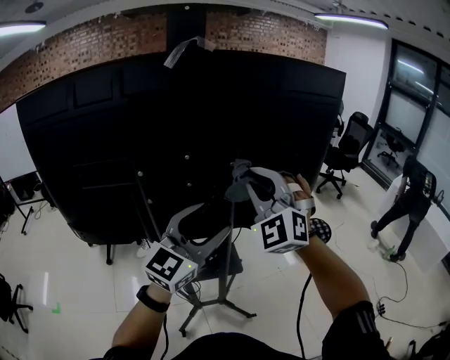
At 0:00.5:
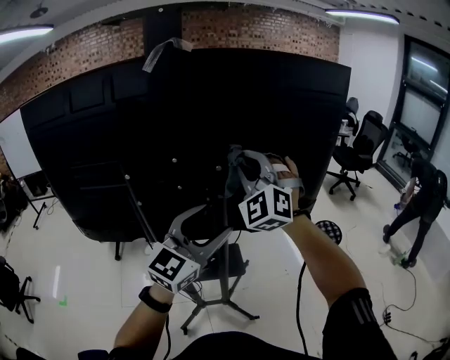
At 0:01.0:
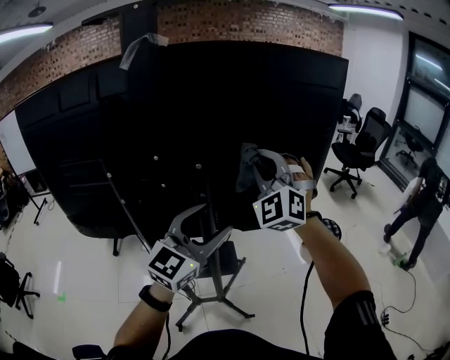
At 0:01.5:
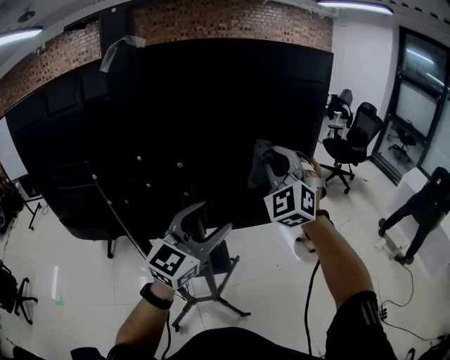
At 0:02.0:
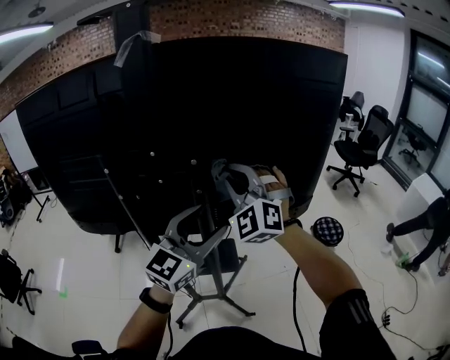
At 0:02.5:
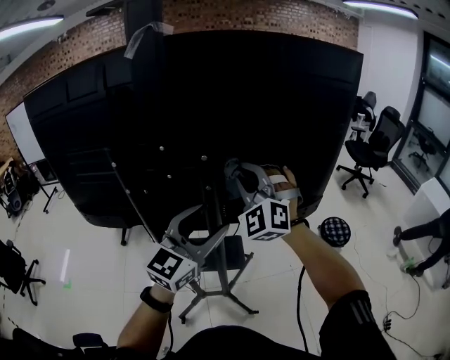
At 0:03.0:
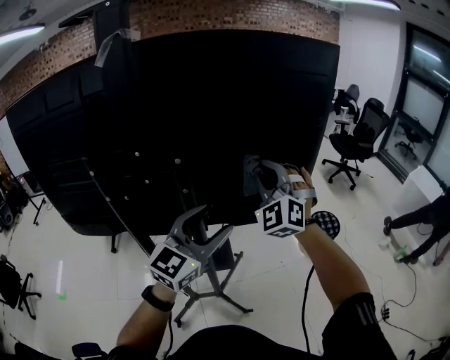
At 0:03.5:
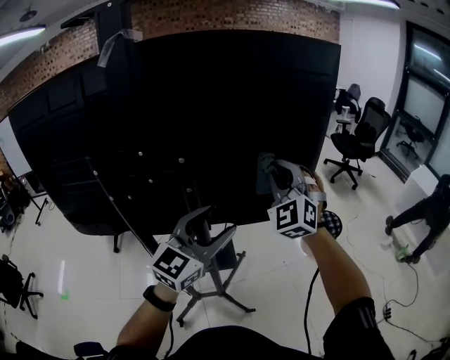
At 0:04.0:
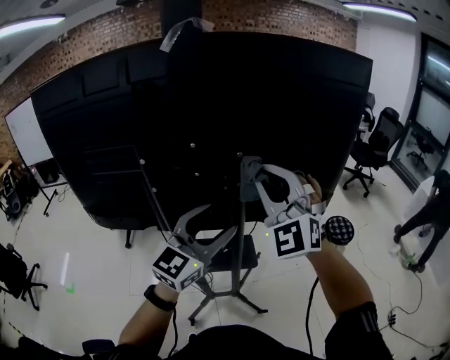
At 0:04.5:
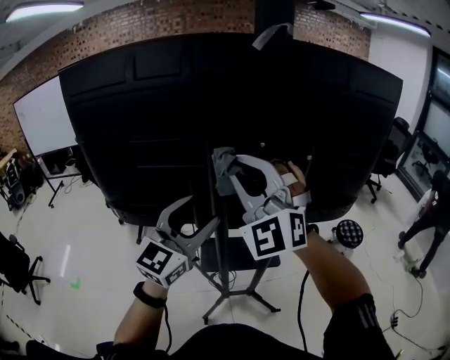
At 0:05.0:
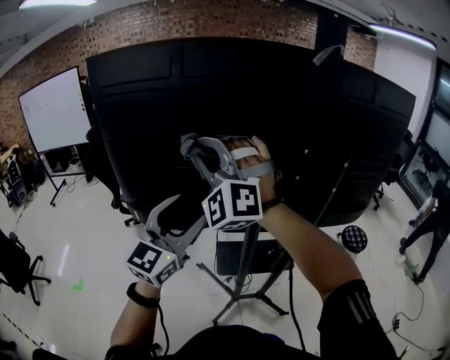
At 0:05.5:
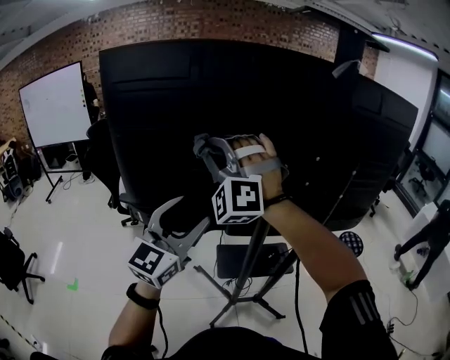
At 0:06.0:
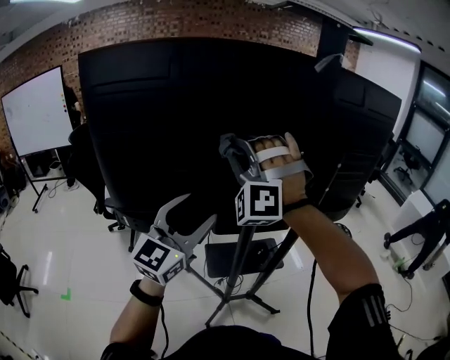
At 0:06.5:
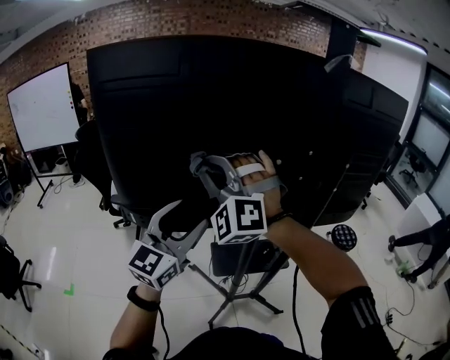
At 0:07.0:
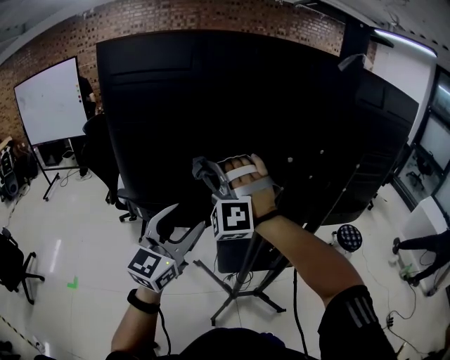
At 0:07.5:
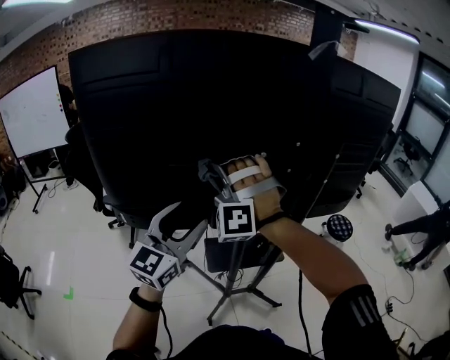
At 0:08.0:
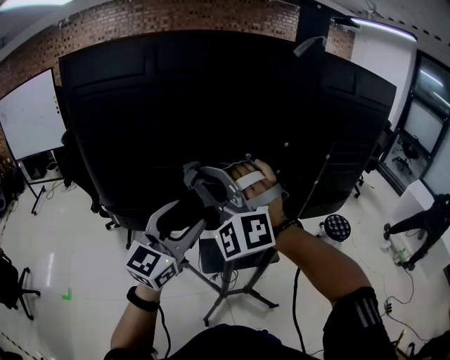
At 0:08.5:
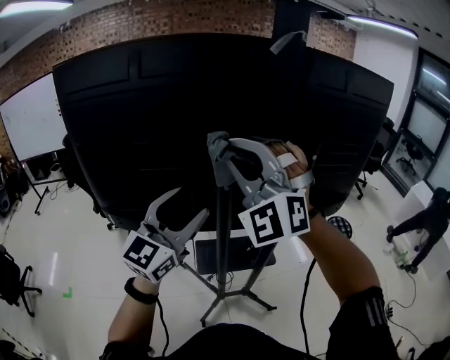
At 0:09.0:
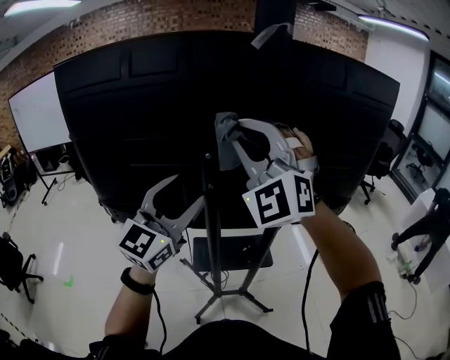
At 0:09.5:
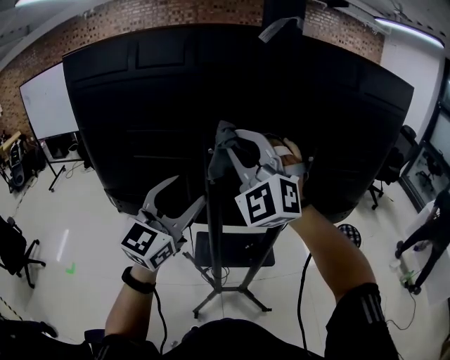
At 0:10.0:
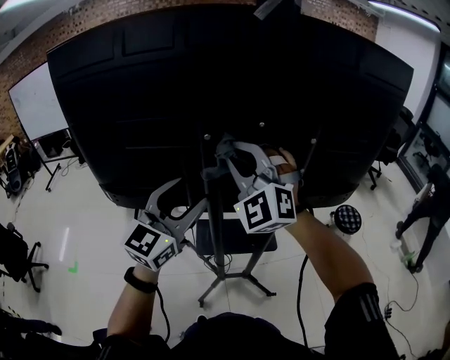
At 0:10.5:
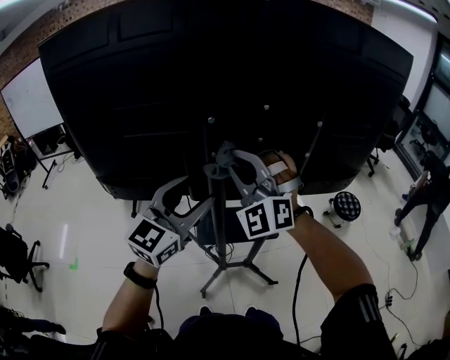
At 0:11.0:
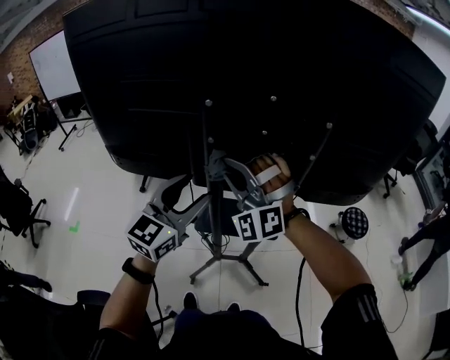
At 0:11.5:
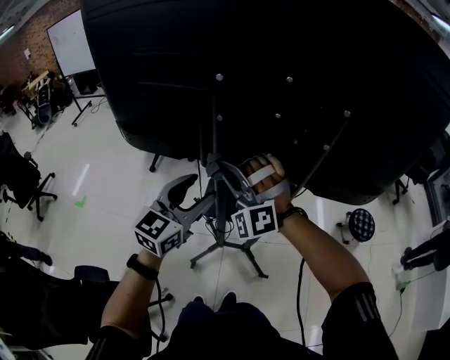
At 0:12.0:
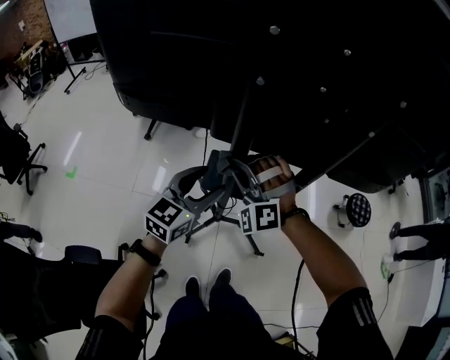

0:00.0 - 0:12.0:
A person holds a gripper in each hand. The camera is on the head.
0:00.0 - 0:02.0: The left gripper moves to the right, some 10 cm. The right gripper travels forward by about 5 cm, and goes to the right and returns, some 15 cm each way.
0:02.0 - 0:04.0: The right gripper is displaced backward by approximately 5 cm, and reaches approximately 15 cm to the right, then returns. The left gripper shifts roughly 5 cm to the left.
0:04.0 - 0:06.0: Both grippers travel together to the left, roughly 35 cm. The right gripper rolls counterclockwise, seen from behind, by roughly 40 degrees.
0:06.0 - 0:08.0: The left gripper goes to the left and returns, approximately 5 cm each way. Meanwhile the right gripper goes roughly 5 cm backward, goes to the left and returns, some 10 cm each way, and turns by about 20 degrees.
0:08.0 - 0:10.0: The right gripper is displaced to the right by about 15 cm. Meanwhile the left gripper travels to the right by about 10 cm.
0:10.0 - 0:12.0: The grippers both shift downward by approximately 30 cm. The right gripper swivels approximately 30 degrees, while the left gripper changes its angle by approximately 20 degrees.

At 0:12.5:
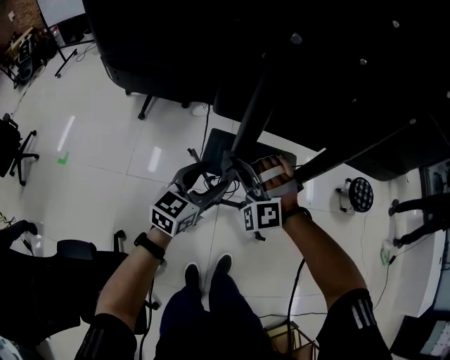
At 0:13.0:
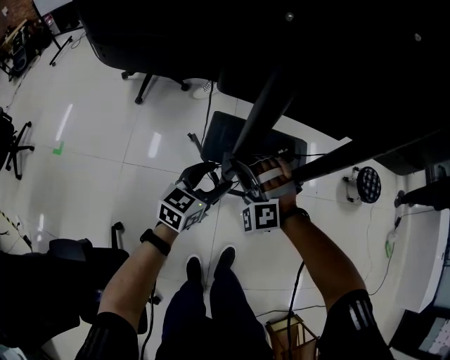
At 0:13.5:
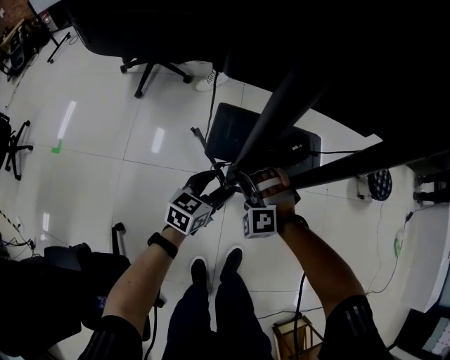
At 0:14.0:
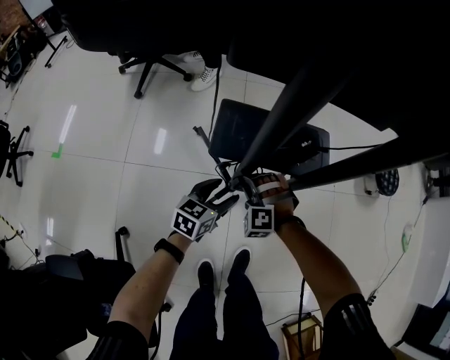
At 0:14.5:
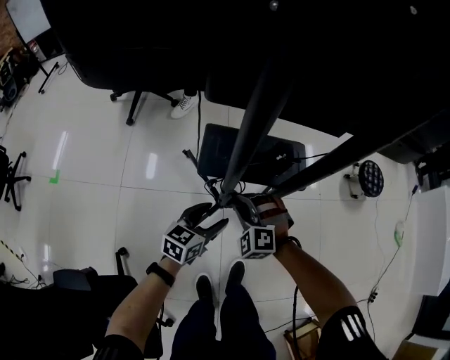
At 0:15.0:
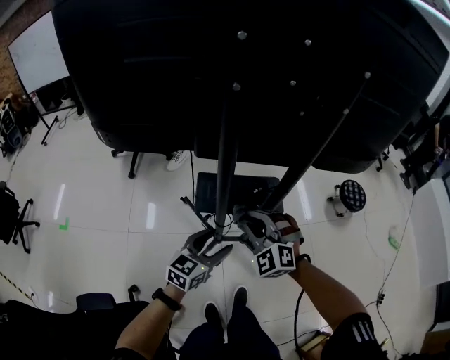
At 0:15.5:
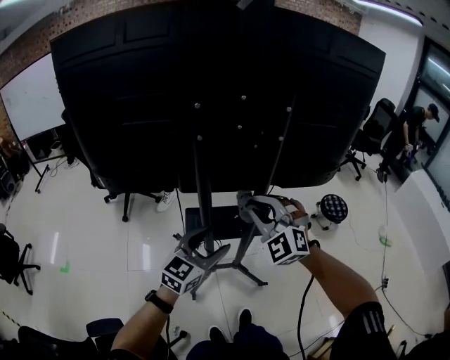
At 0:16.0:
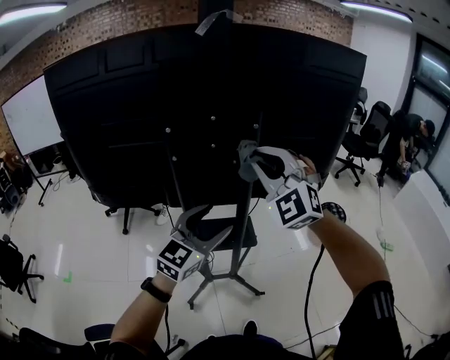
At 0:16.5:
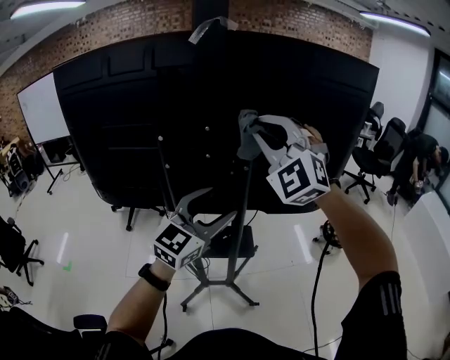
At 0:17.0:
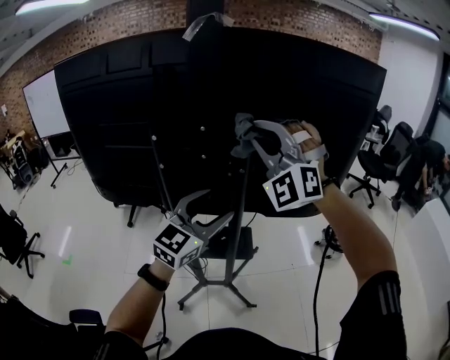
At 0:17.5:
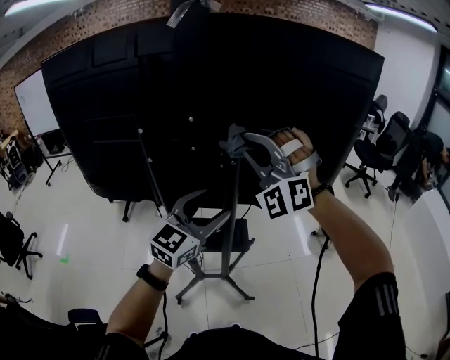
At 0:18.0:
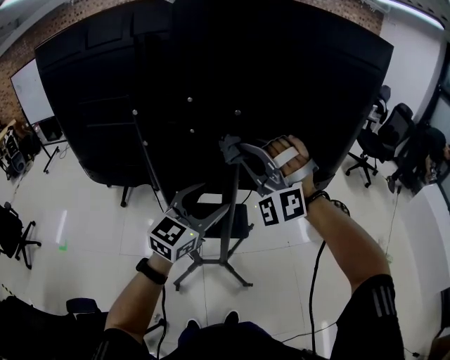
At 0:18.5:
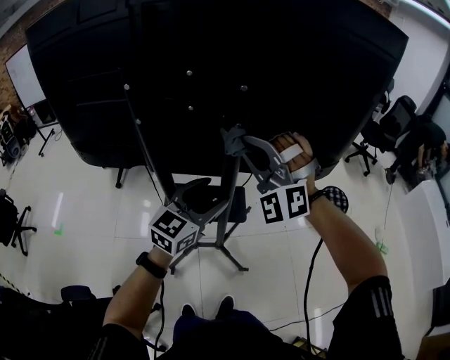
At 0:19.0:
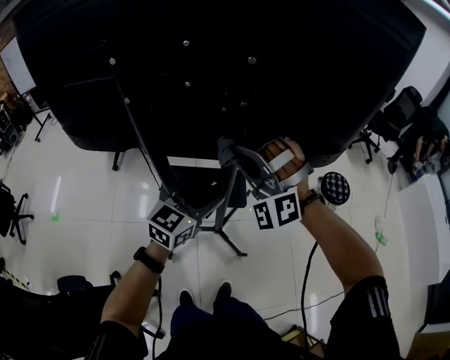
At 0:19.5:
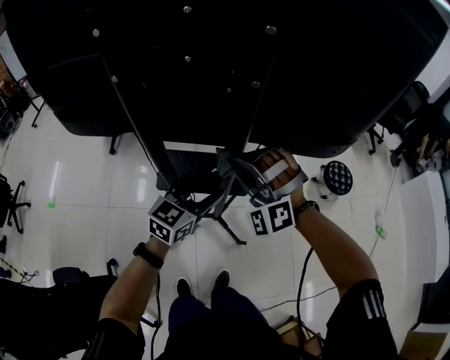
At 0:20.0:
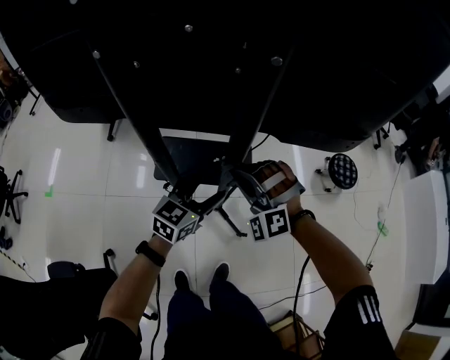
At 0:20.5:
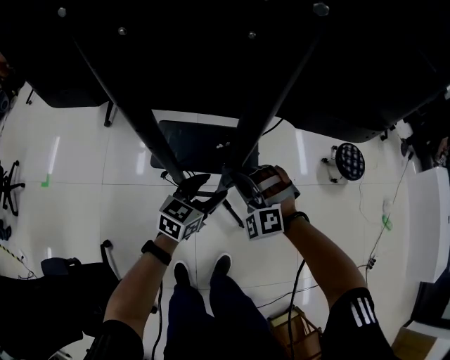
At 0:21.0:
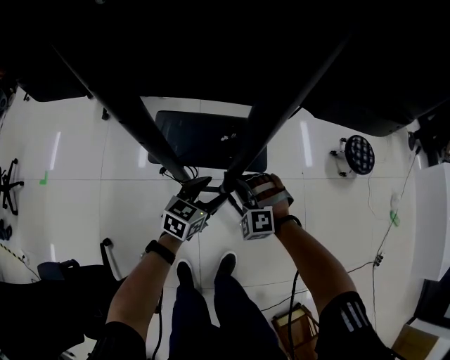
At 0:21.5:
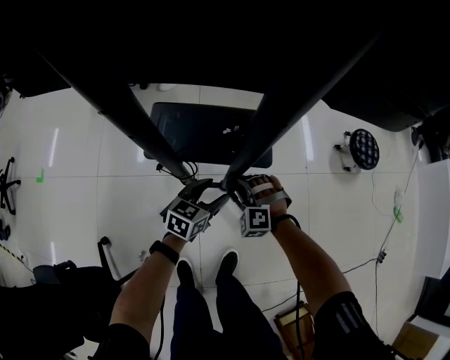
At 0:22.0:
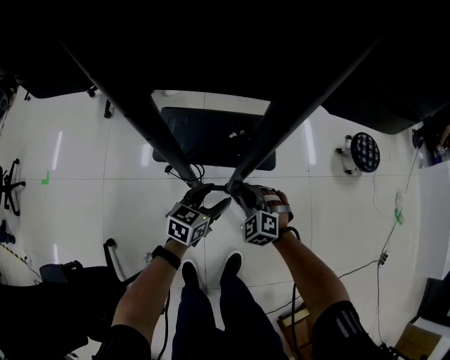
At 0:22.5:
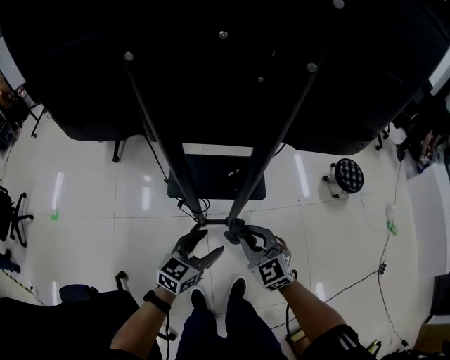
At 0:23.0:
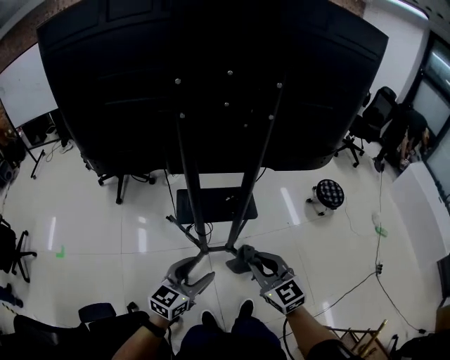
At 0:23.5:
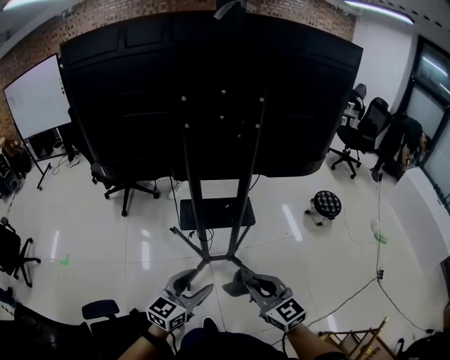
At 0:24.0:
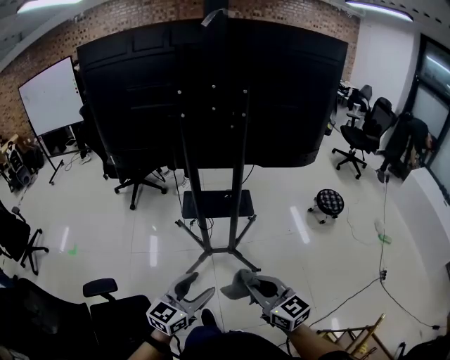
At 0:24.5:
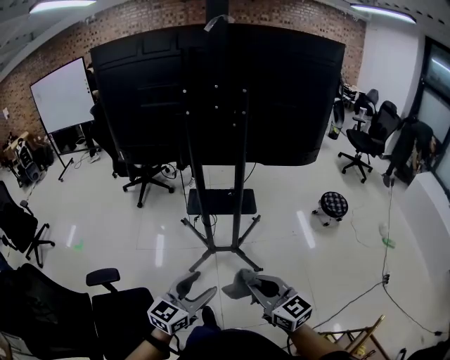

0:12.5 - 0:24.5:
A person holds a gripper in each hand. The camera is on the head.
0:12.5 - 0:14.5: Both grippers travel together downward, approximately 20 cm. The right gripper turns by about 30 degrees.
0:14.5 - 0:16.5: Both grippers travel together upward, about 70 cm. The left gripper turns by approximately 50 degrees. Meanwhile the right gripper tips its fingers upward by about 40 degrees.
0:16.5 - 0:18.5: Both grippers travel together downward, about 15 cm.
0:18.5 - 0:20.5: The two grippers go about 40 cm downward. The left gripper changes its angle by roughly 20 degrees, while the right gripper turns by roughly 30 degrees.
0:20.5 - 0:22.5: Both grippers move backward, some 10 cm. The left gripper reaches roughly 15 cm downward, then returns; the right gripper moves roughly 25 cm downward and comes back, and rotates around the line of its fingers by about 50 degrees, clockwise from behind.
0:22.5 - 0:24.5: Both grippers travel together backward and upward, about 40 cm. The right gripper swivels about 30 degrees.

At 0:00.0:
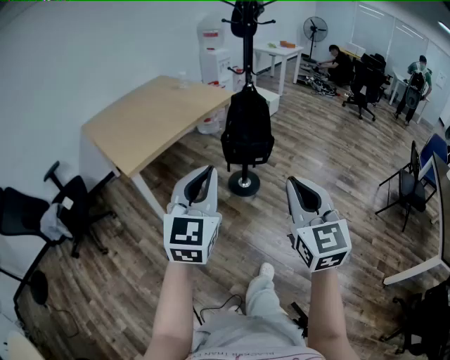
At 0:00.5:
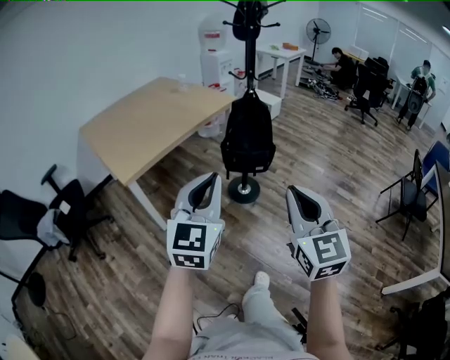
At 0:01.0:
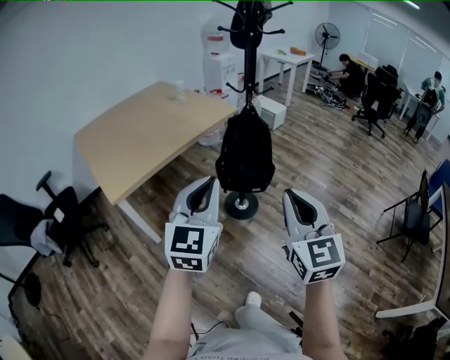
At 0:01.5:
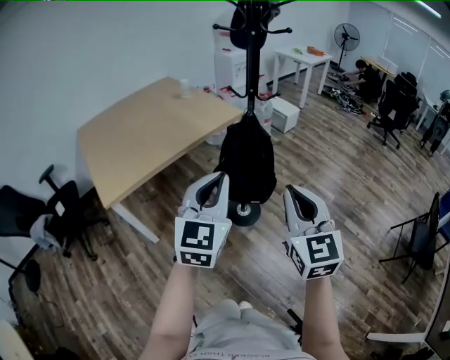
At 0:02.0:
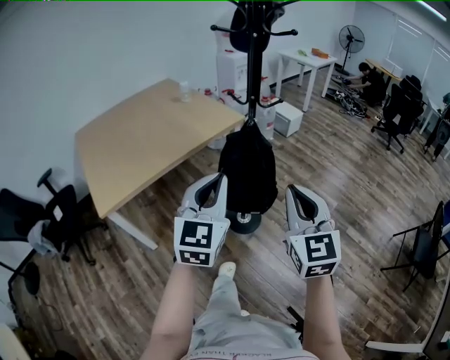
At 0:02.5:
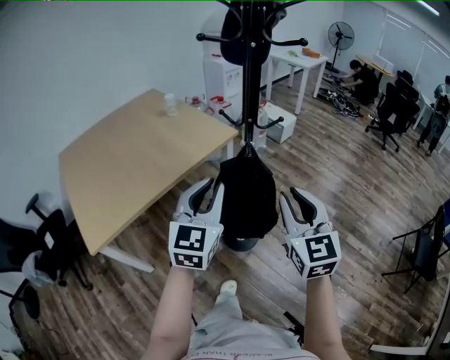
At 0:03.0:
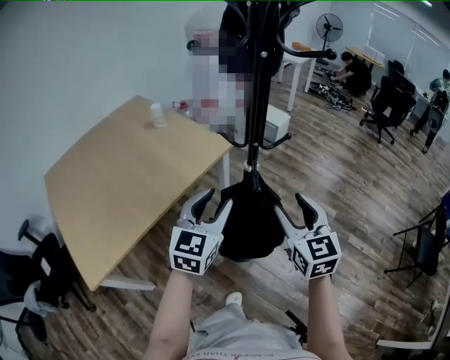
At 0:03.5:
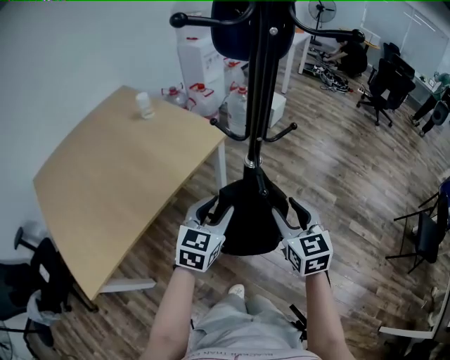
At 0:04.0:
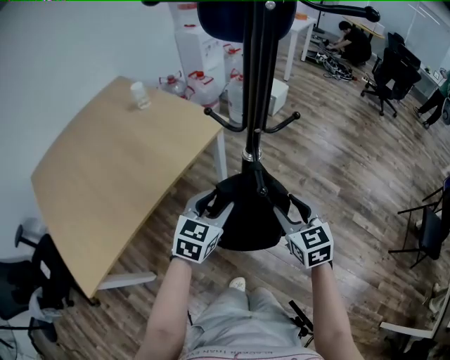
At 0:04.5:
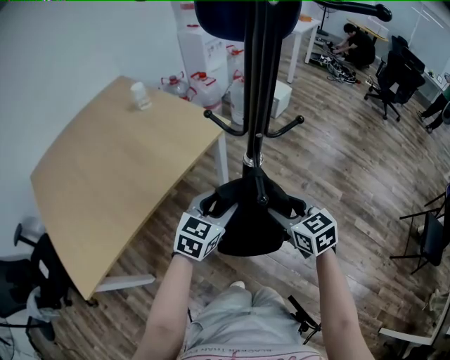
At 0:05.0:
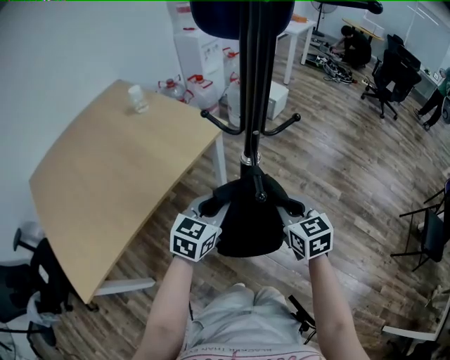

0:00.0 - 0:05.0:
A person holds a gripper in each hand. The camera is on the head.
0:00.0 - 0:02.5: Both grippers are carried forward, some 50 cm. The right gripper opens its fingers.
0:02.5 - 0:05.0: Both grippers travel together downward and forward, some 25 cm. The left gripper rotates approximately 30 degrees, and opens, then closes once more, while the right gripper changes its angle by approximately 30 degrees, and opens, then closes once more.
